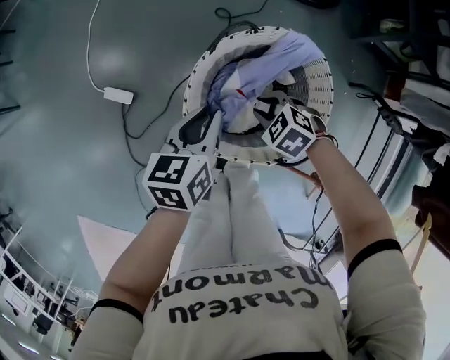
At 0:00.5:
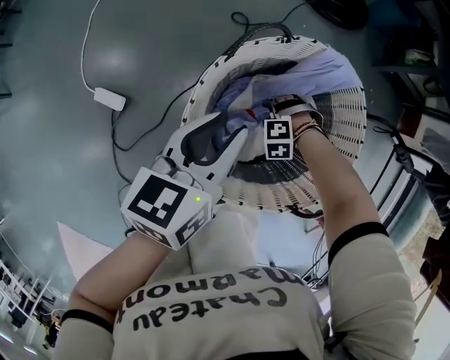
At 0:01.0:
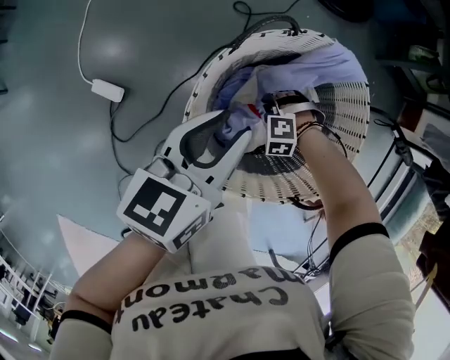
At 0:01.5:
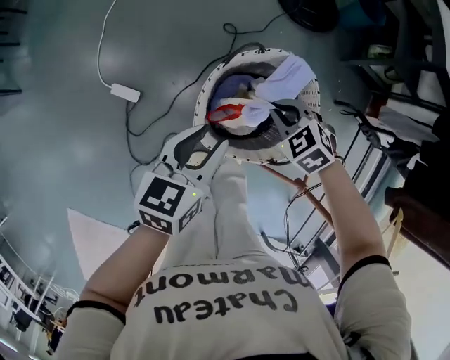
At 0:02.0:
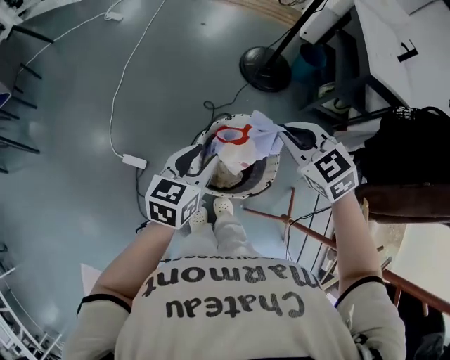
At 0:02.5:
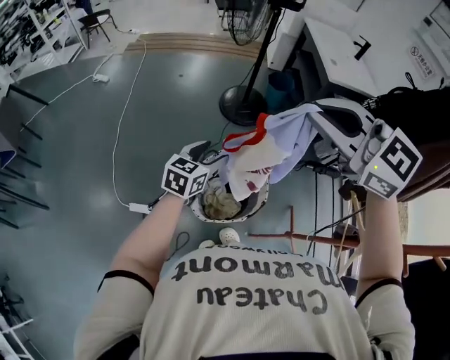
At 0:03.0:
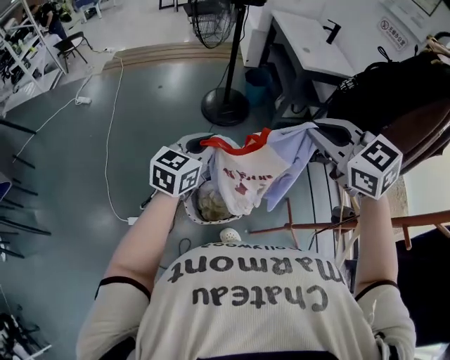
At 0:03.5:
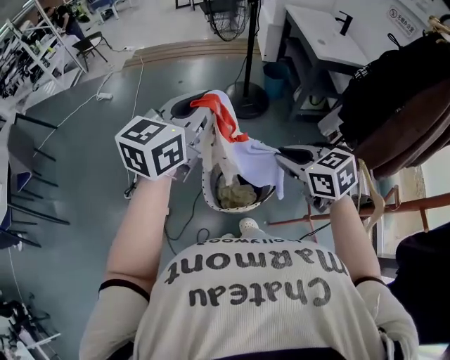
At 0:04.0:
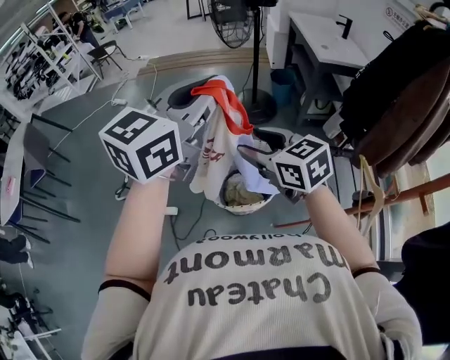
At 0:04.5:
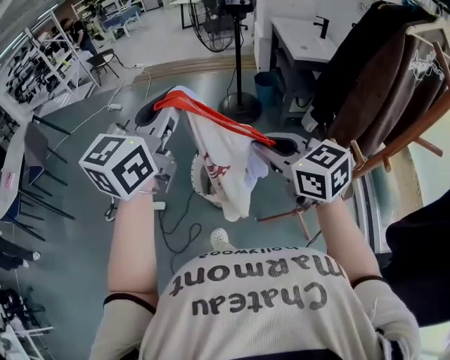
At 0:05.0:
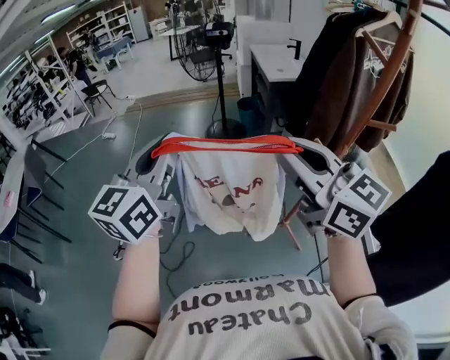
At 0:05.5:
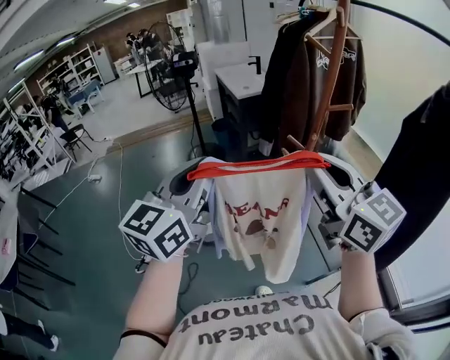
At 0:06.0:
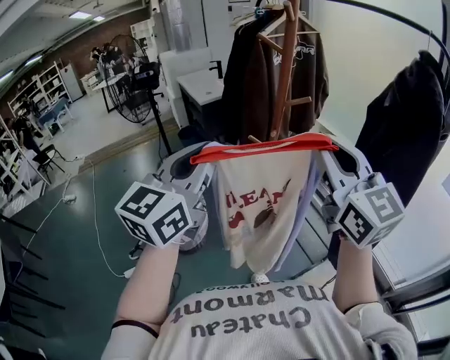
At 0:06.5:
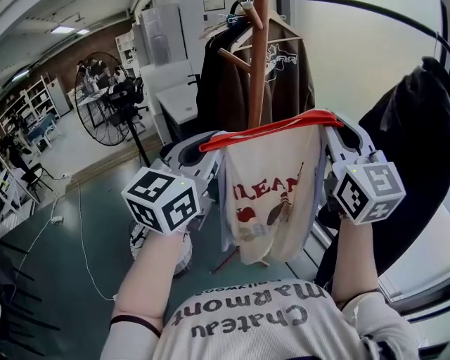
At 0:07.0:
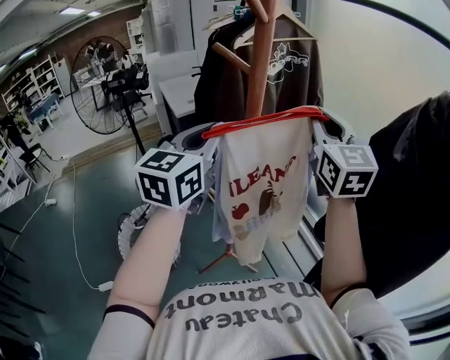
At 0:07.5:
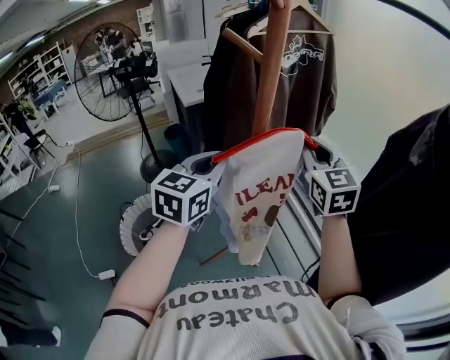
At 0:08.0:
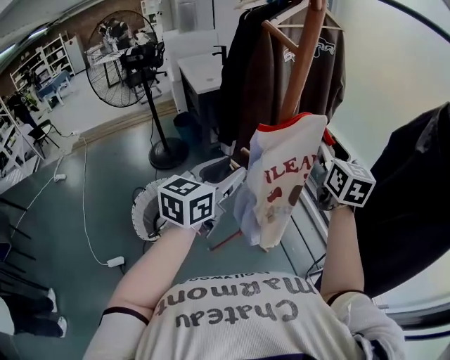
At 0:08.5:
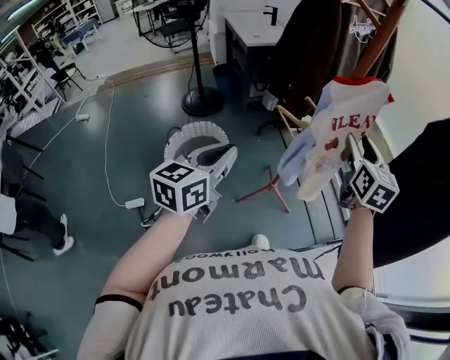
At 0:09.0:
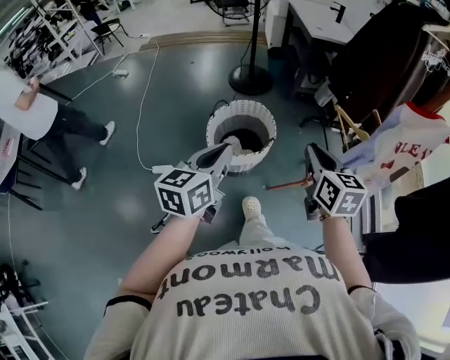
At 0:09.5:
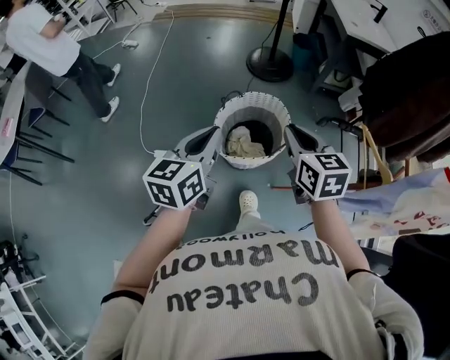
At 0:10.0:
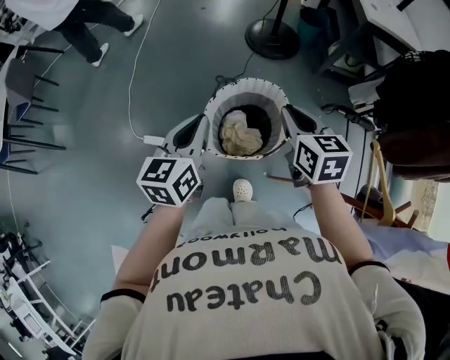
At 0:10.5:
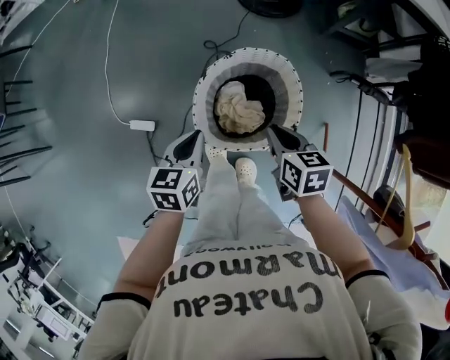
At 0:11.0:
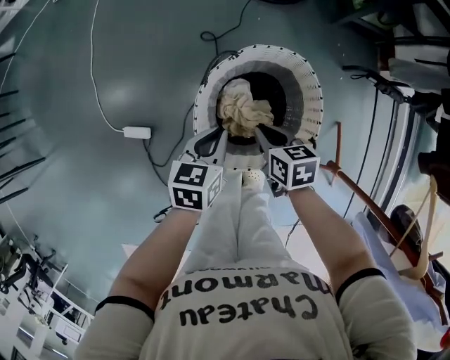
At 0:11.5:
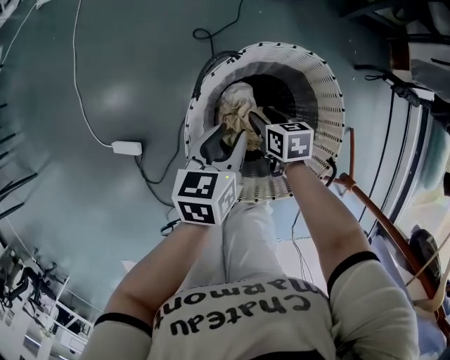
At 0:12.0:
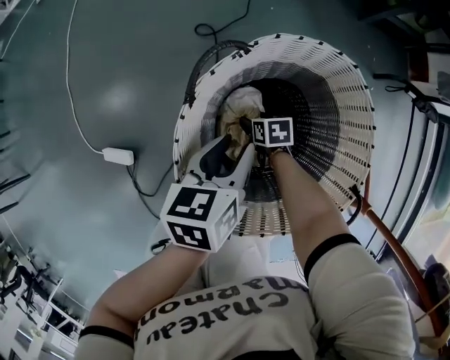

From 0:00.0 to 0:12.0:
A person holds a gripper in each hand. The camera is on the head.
From 0:00.0 to 0:02.0: The right gripper travels upward by approximately 50 cm, swivels approximately 30 degrees, and opens and closes again, while the left gripper goes approximately 25 cm upward, swivels about 20 degrees, and opens up.
From 0:02.0 to 0:04.0: The left gripper heads upward, covering approximately 35 cm, changes its angle by approximately 40 degrees, and closes; the right gripper moves up and down over roughly 30 cm, changing direction 2 times, changes its angle by some 30 degrees, and opens its fingers.
From 0:04.0 to 0:06.0: The two grippers travel together, approximately 50 cm. The right gripper angles its fingers upward, by some 30 degrees, and closes its fingers; the left gripper swivels roughly 20 degrees.
From 0:06.0 to 0:08.0: Both grippers travel together forward and downward, about 30 cm. The left gripper swivels roughly 20 degrees, and opens up, while the right gripper changes its angle by roughly 20 degrees, and opens up.
From 0:08.0 to 0:10.0: Both grippers are carried roughly 60 cm. The left gripper rotates about 50 degrees, and closes up; the right gripper changes its angle by roughly 60 degrees, and closes up.
From 0:10.0 to 0:12.0: The left gripper heads downward, covering roughly 50 cm, rotates about 30 degrees, and opens up; the right gripper goes roughly 70 cm downward, turns by roughly 40 degrees, and opens up.

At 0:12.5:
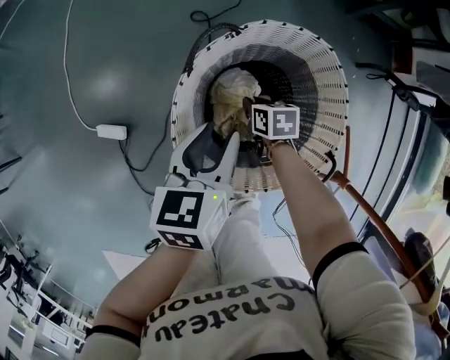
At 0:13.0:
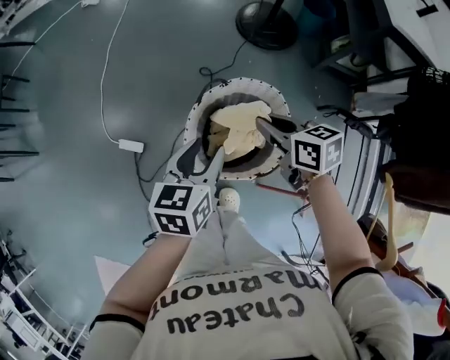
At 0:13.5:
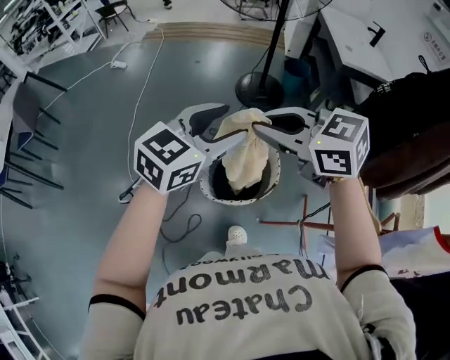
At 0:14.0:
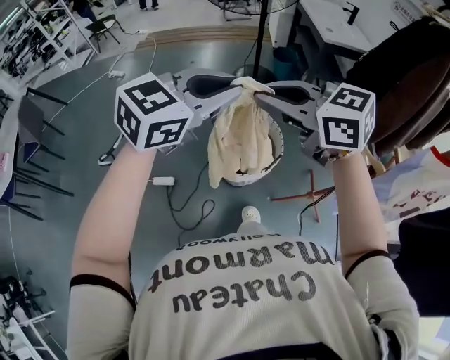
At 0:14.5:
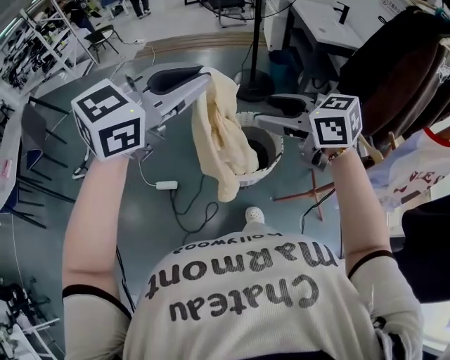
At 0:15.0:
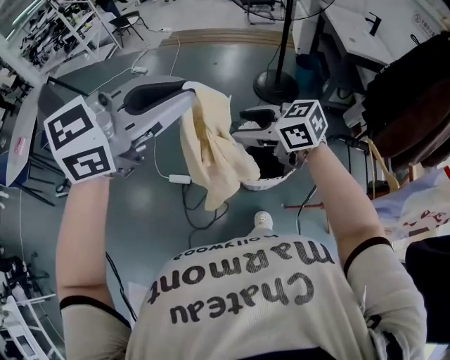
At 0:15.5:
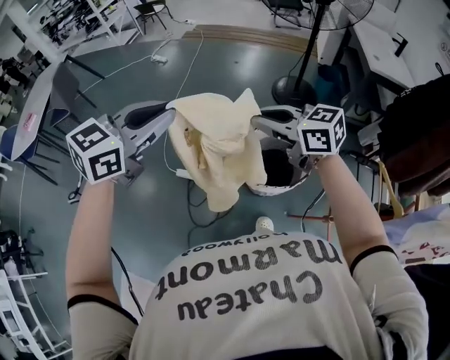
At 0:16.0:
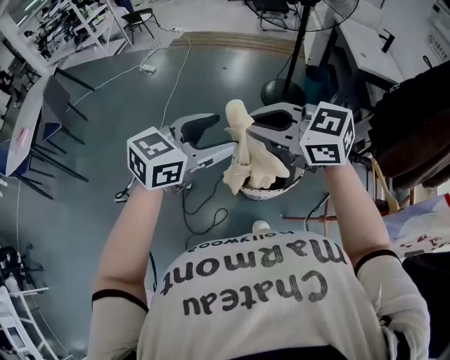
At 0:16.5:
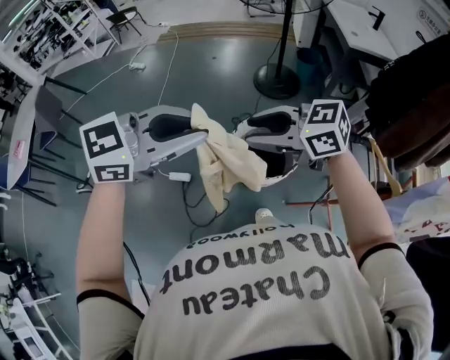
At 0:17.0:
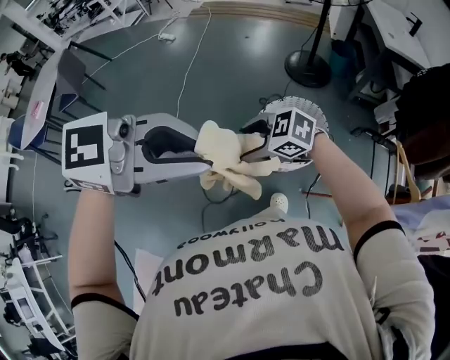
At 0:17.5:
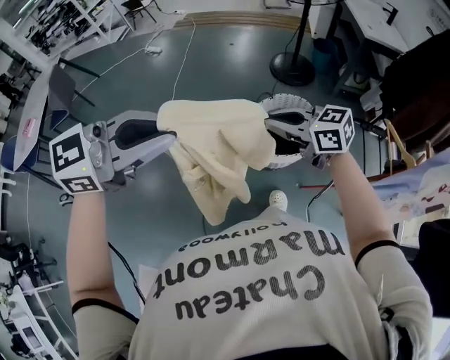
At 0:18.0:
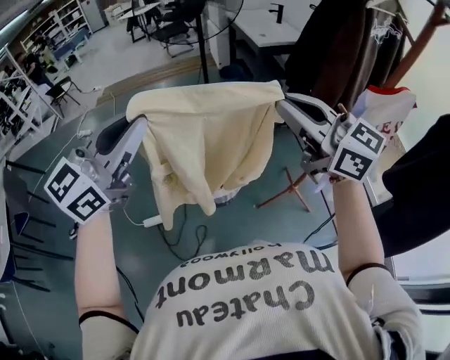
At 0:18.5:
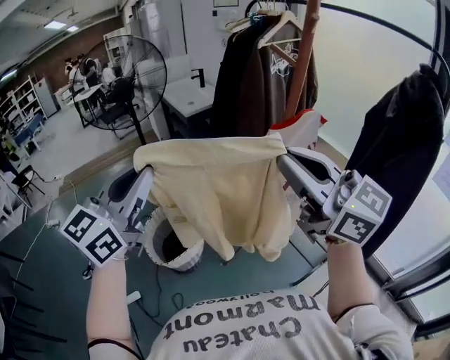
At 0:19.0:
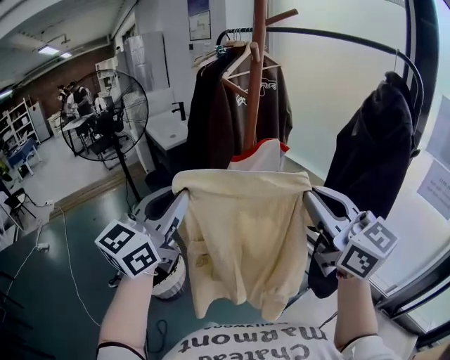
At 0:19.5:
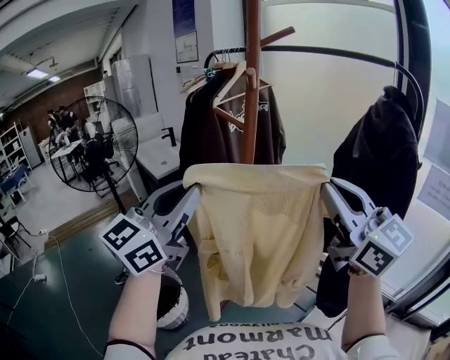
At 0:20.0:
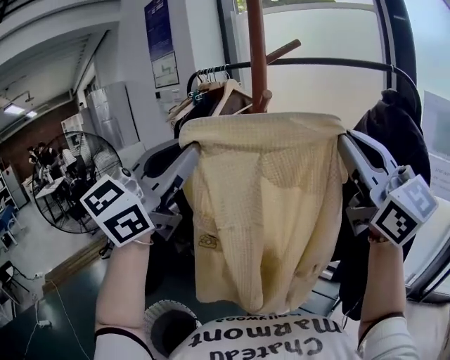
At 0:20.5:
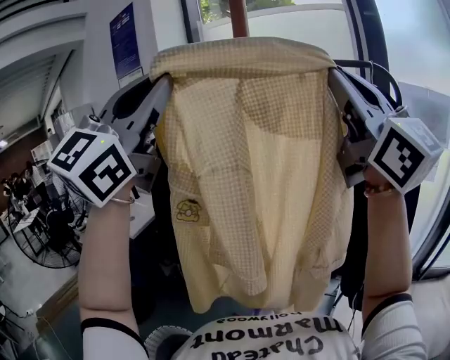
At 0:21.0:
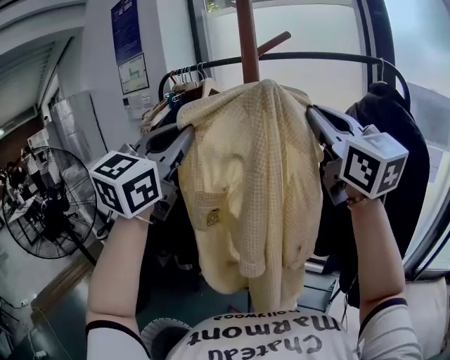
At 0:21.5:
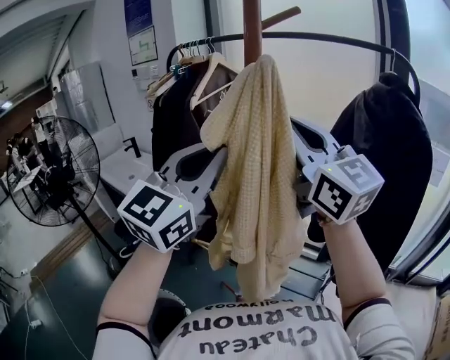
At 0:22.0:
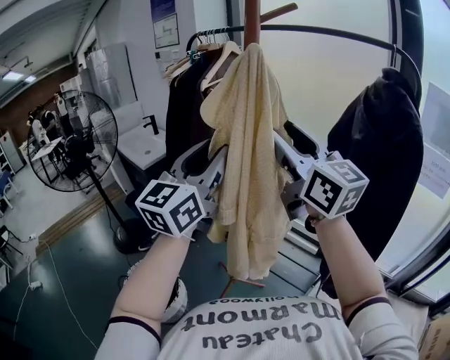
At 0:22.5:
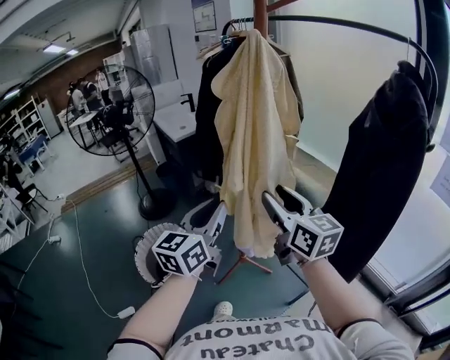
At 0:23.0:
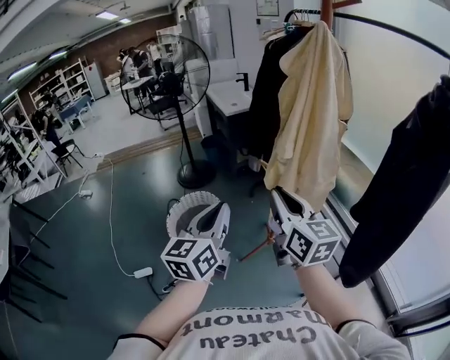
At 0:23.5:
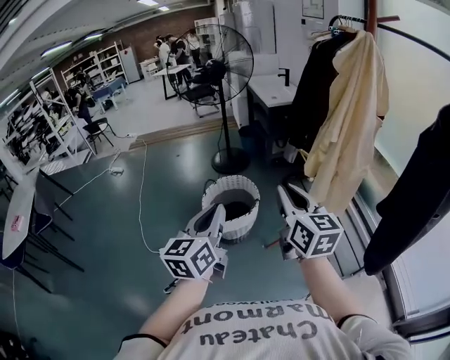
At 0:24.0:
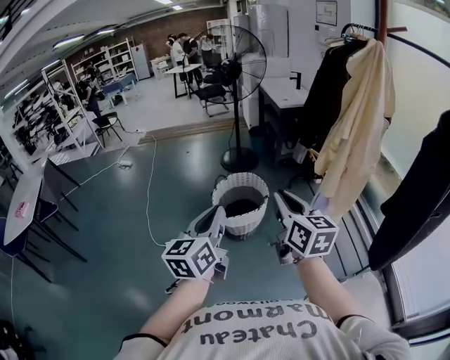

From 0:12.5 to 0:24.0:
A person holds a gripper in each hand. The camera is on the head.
From 0:12.5 to 0:14.5: The grippers both shift upward by approximately 70 cm. The left gripper swivels approximately 60 degrees, and closes its fingers. The right gripper tilts its fingers roughly 40 degrees upward, and opens up.
From 0:14.5 to 0:16.5: The left gripper heads downward, covering some 10 cm, and opens, then closes once more; the right gripper moves up and down over about 10 cm, changing direction 2 times, changes its angle by roughly 30 degrees, and closes.
From 0:16.5 to 0:18.5: The right gripper ends up about 50 cm from where it was, tips its fingers upward by roughly 30 degrees, and closes. The left gripper shifts by approximately 25 cm, and turns by approximately 30 degrees.
From 0:18.5 to 0:20.0: The left gripper changes place by some 35 cm, and changes its angle by about 40 degrees. Meanwhile the right gripper moves roughly 25 cm, and turns by roughly 40 degrees.
From 0:20.0 to 0:22.0: The right gripper goes approximately 15 cm downward, forward and to the left, turns by some 20 degrees, and opens its fingers; the left gripper goes roughly 15 cm downward and to the right, rotates approximately 20 degrees, and opens up.
From 0:22.0 to 0:24.0: Both grippers are carried some 50 cm. The left gripper turns by approximately 60 degrees, and closes its fingers. The right gripper changes its angle by about 40 degrees, and closes its fingers.

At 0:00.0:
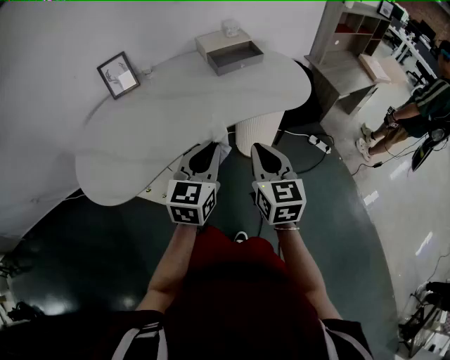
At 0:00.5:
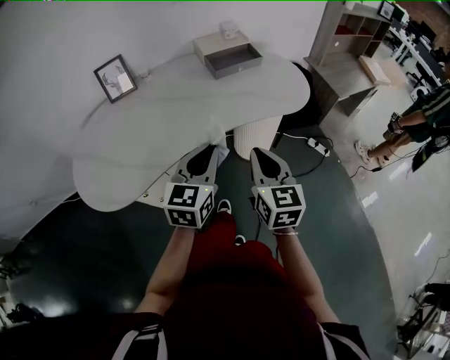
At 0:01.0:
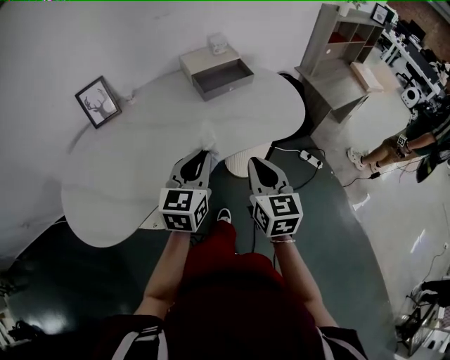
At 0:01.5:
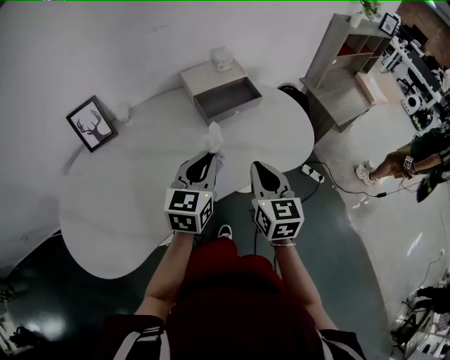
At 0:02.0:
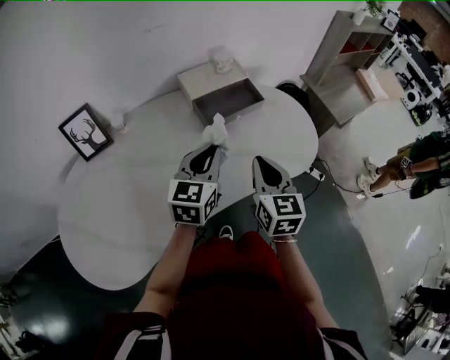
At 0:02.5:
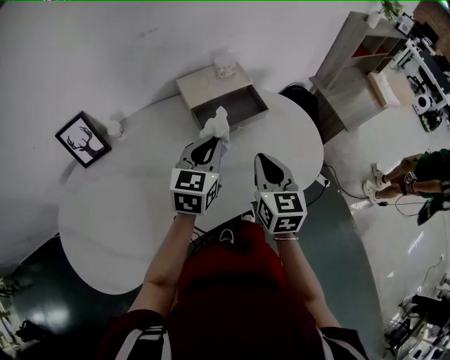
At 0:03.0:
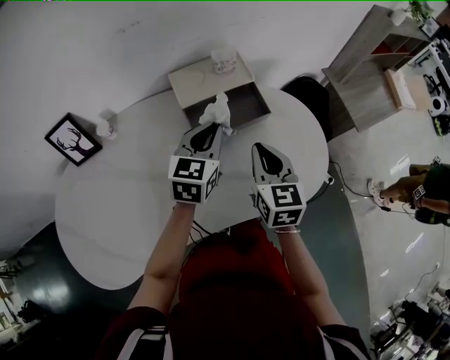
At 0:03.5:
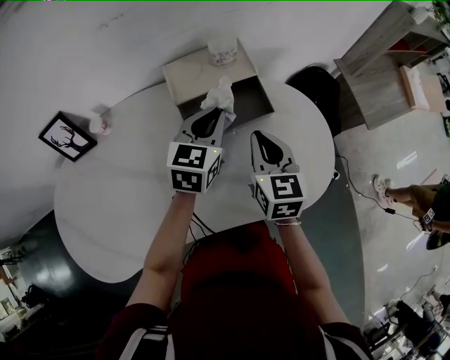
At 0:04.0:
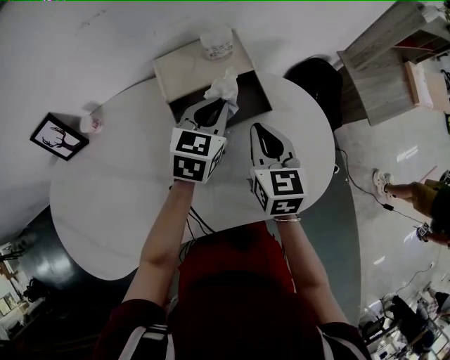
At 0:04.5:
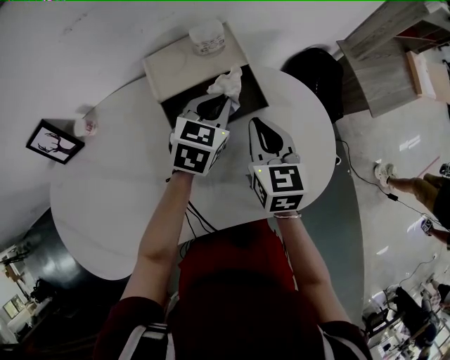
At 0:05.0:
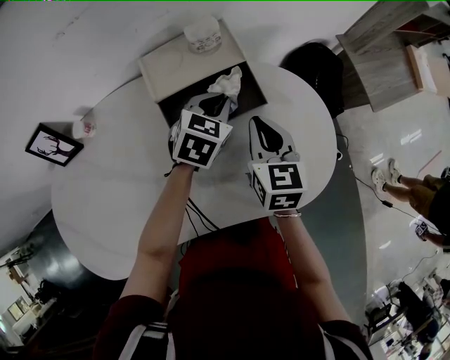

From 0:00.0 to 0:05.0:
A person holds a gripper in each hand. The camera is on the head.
From 0:00.0 to 0:02.5: The two grippers go about 35 cm forward.
From 0:02.5 to 0:05.0: The right gripper heads forward and downward, covering about 15 cm. The left gripper moves forward, downward and to the right, about 20 cm, and changes its angle by roughly 30 degrees.
